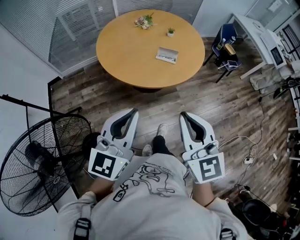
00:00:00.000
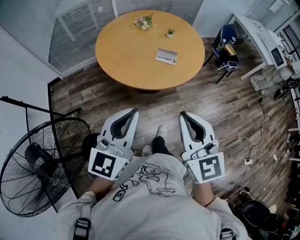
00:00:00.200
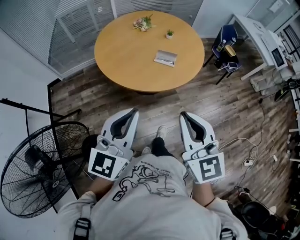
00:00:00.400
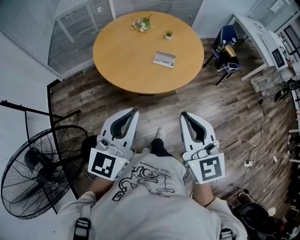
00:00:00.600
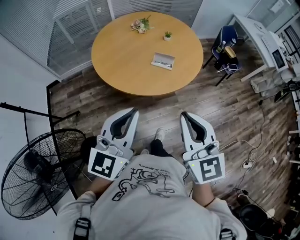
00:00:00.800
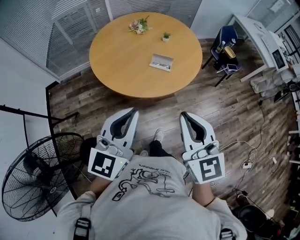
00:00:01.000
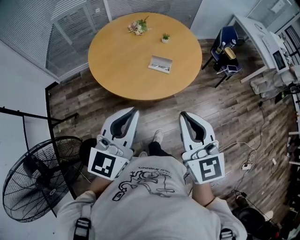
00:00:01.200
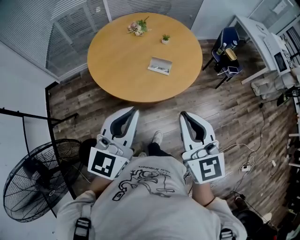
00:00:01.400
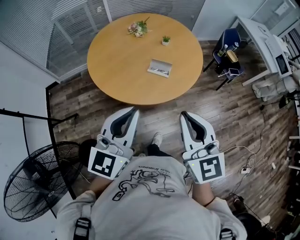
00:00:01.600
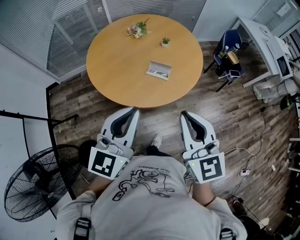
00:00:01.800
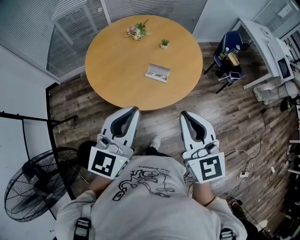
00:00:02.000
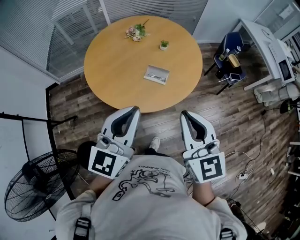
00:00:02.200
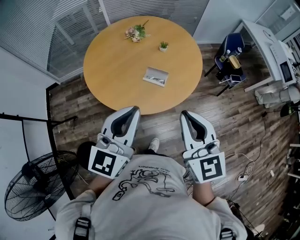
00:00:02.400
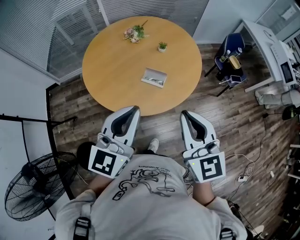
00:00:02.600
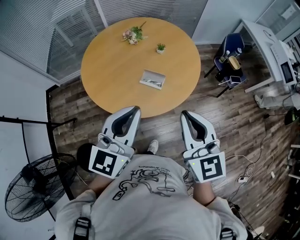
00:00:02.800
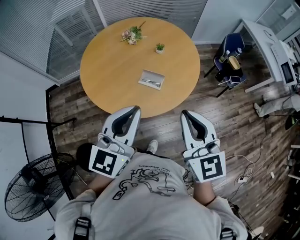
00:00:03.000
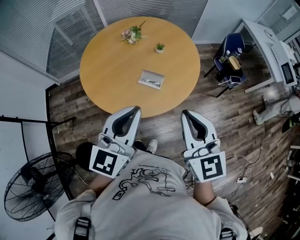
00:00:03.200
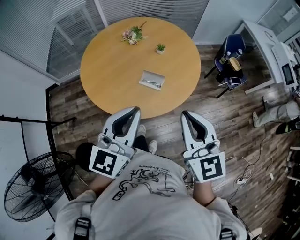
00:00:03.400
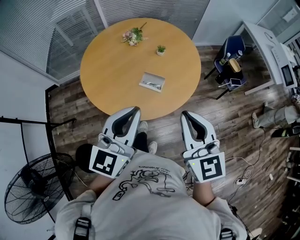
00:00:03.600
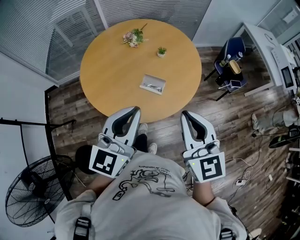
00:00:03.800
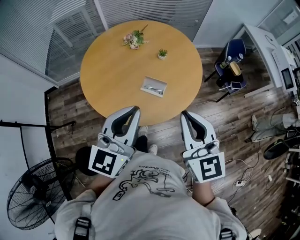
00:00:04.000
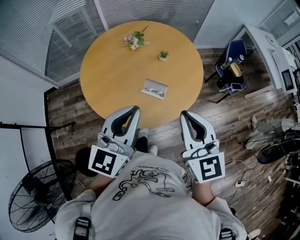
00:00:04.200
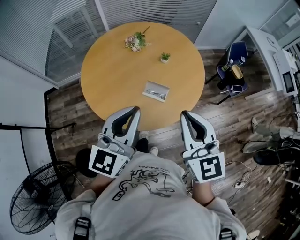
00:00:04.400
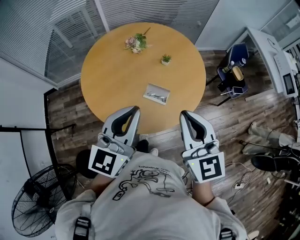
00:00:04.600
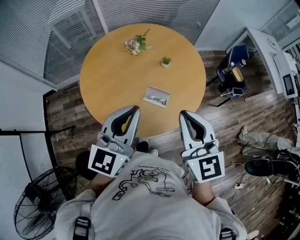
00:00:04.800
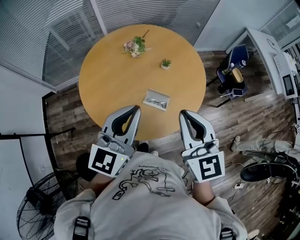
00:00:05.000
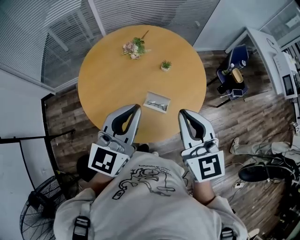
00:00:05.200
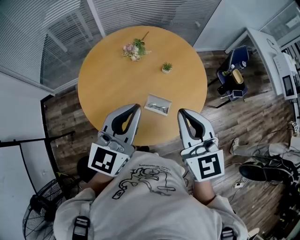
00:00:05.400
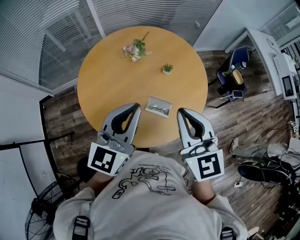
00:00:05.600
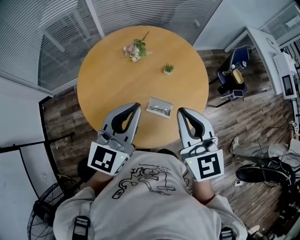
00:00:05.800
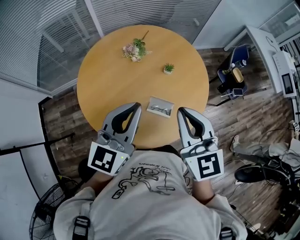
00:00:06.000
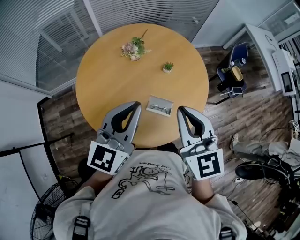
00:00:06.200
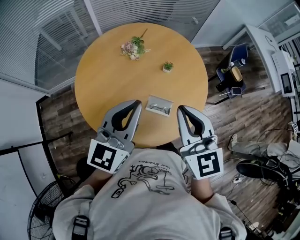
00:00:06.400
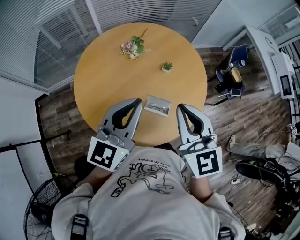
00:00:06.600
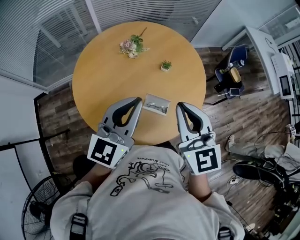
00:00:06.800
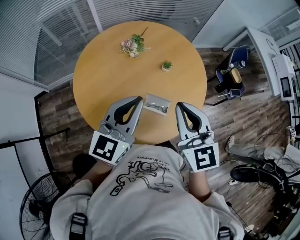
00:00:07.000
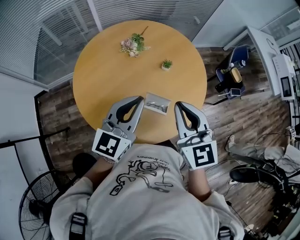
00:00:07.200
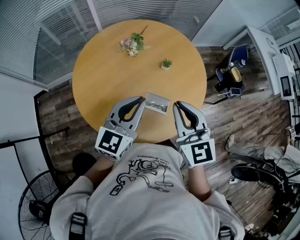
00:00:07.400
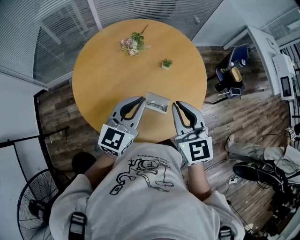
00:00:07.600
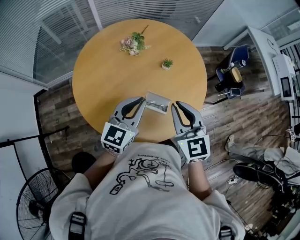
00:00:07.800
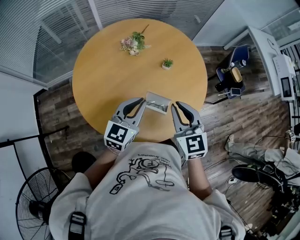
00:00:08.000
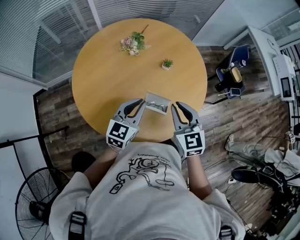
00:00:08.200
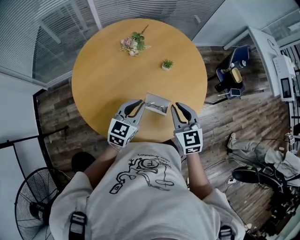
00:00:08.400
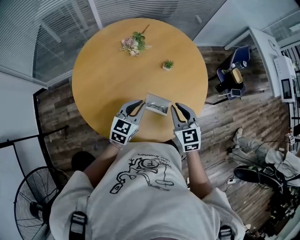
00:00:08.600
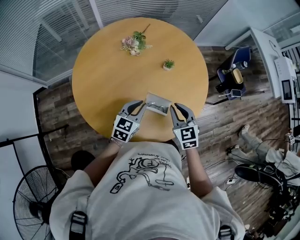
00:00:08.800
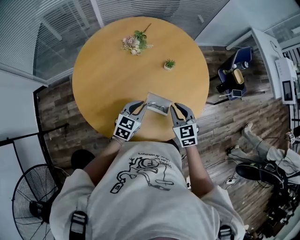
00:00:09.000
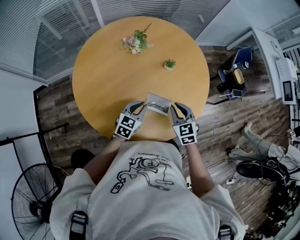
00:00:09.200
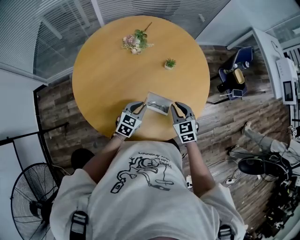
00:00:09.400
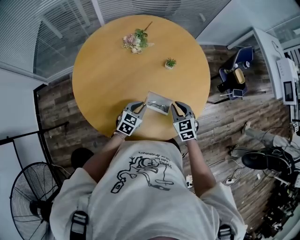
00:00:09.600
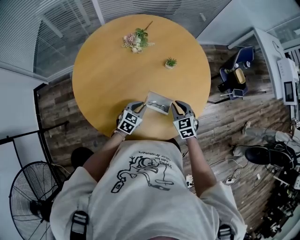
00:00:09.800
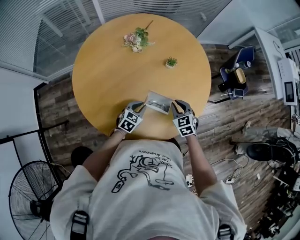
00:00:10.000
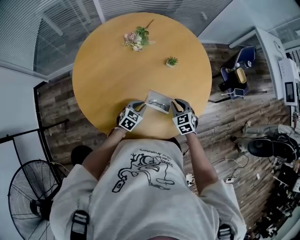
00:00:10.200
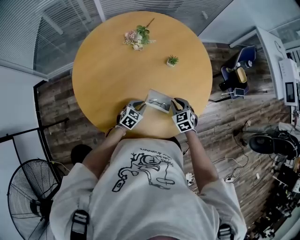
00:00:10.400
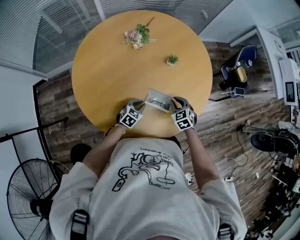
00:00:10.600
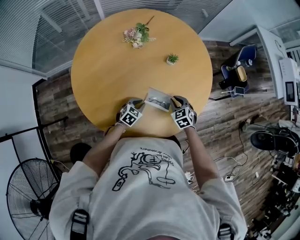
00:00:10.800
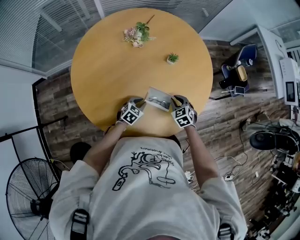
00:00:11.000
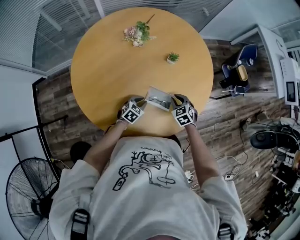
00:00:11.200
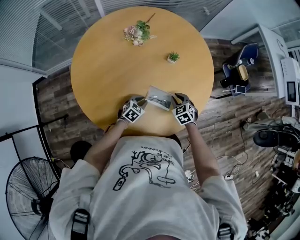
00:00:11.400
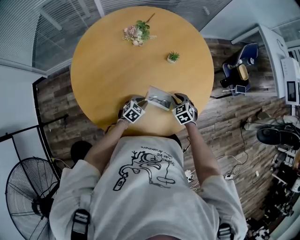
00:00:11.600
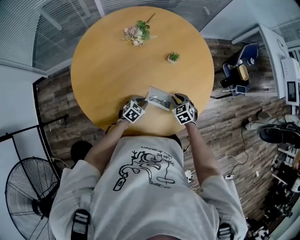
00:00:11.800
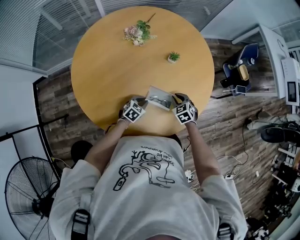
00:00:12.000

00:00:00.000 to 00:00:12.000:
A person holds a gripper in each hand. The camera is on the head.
00:00:00.000 to 00:00:01.600: Both grippers travel together forward and to the right, about 20 cm.
00:00:01.600 to 00:00:03.000: Both grippers move forward and to the right, some 15 cm.
00:00:03.000 to 00:00:04.400: The grippers both shift forward by roughly 10 cm.
00:00:04.400 to 00:00:06.000: The right gripper goes about 15 cm forward and to the left; the left gripper goes roughly 15 cm forward.
00:00:06.000 to 00:00:07.600: Both grippers travel together downward, roughly 10 cm.
00:00:07.600 to 00:00:09.000: The two grippers go roughly 20 cm downward. The left gripper rotates approximately 20 degrees; the right gripper turns by approximately 20 degrees.
00:00:09.000 to 00:00:10.400: Both grippers travel together downward, some 15 cm.
00:00:10.400 to 00:00:12.000: The left gripper moves roughly 5 cm; the right gripper travels downward by some 5 cm.

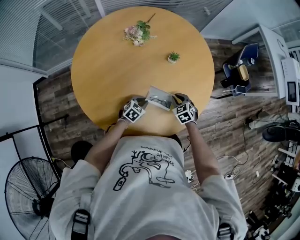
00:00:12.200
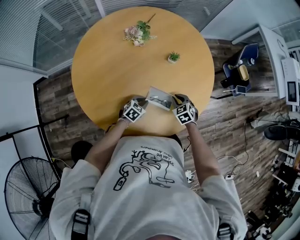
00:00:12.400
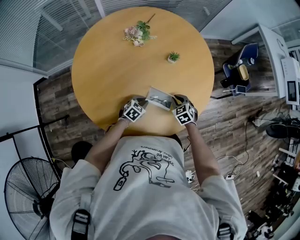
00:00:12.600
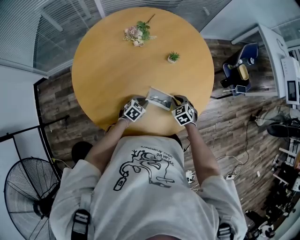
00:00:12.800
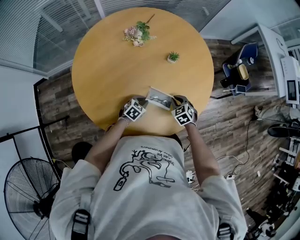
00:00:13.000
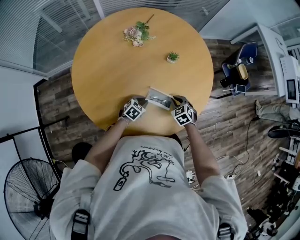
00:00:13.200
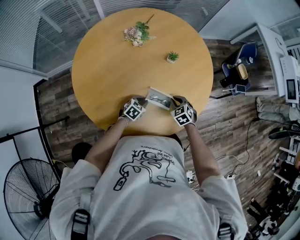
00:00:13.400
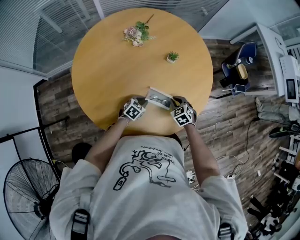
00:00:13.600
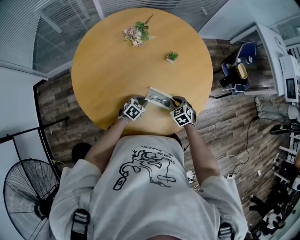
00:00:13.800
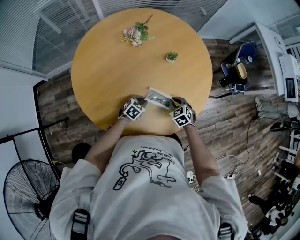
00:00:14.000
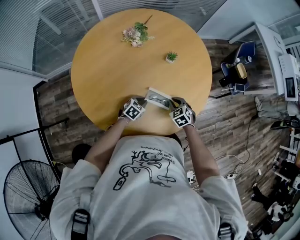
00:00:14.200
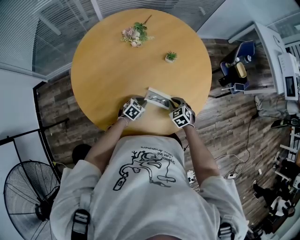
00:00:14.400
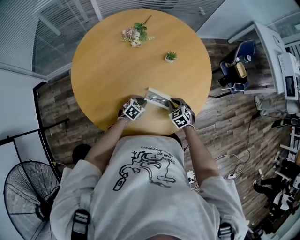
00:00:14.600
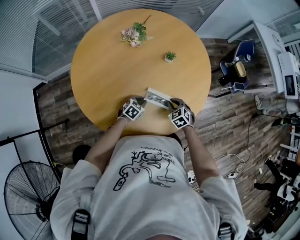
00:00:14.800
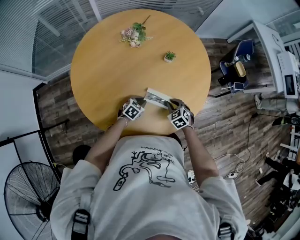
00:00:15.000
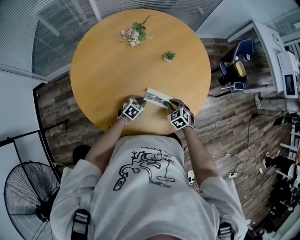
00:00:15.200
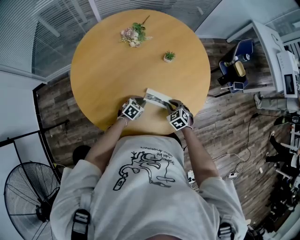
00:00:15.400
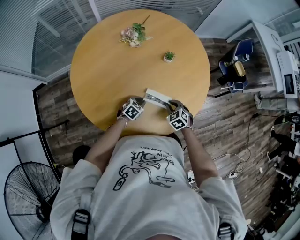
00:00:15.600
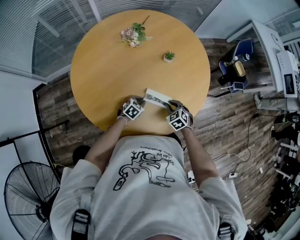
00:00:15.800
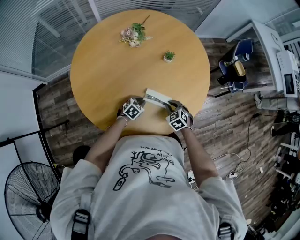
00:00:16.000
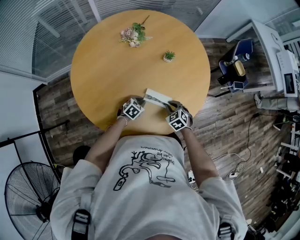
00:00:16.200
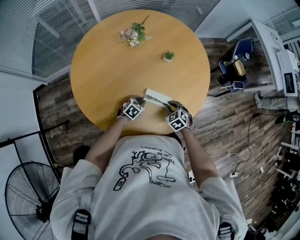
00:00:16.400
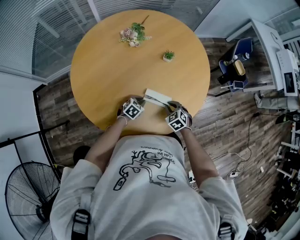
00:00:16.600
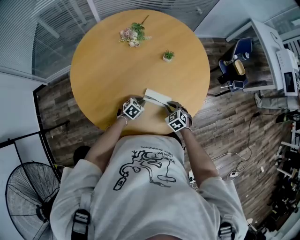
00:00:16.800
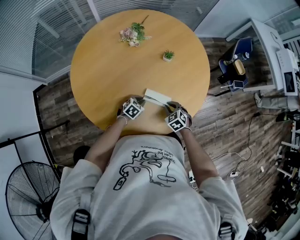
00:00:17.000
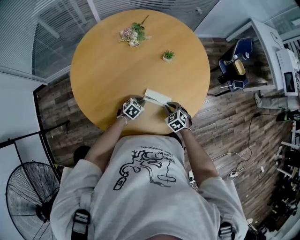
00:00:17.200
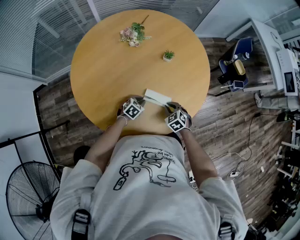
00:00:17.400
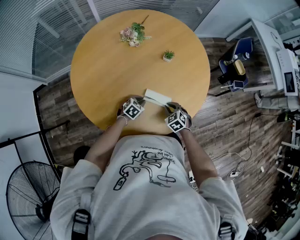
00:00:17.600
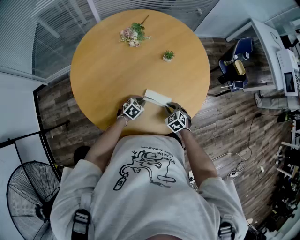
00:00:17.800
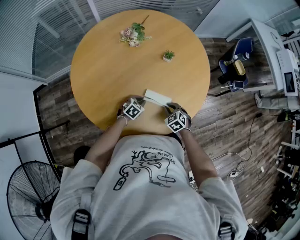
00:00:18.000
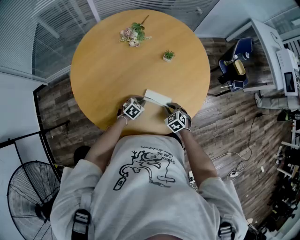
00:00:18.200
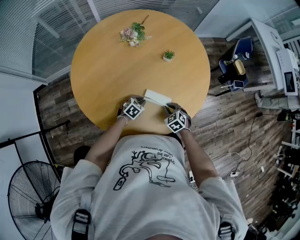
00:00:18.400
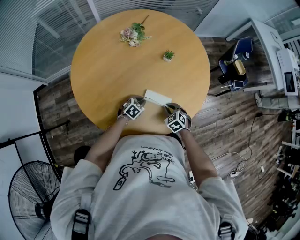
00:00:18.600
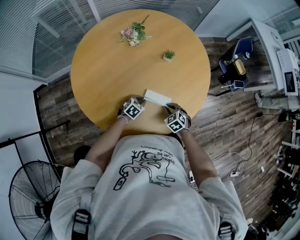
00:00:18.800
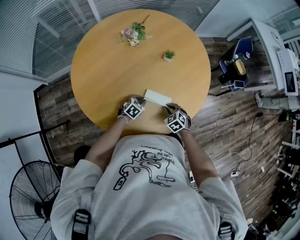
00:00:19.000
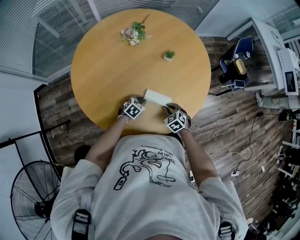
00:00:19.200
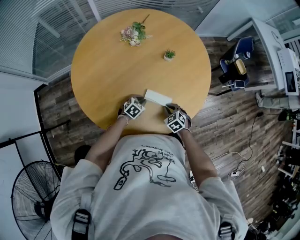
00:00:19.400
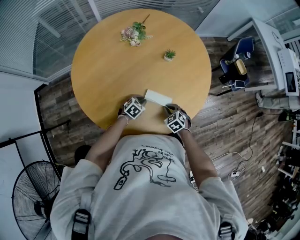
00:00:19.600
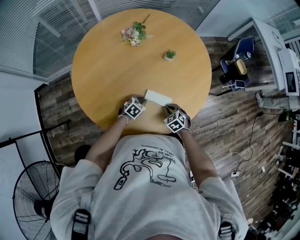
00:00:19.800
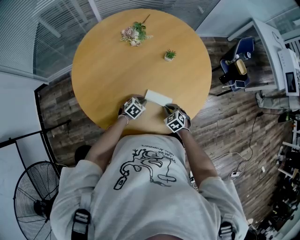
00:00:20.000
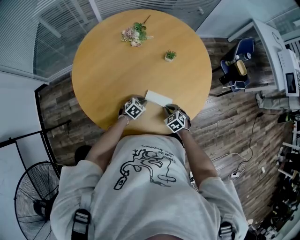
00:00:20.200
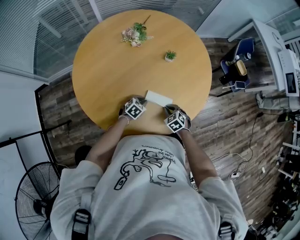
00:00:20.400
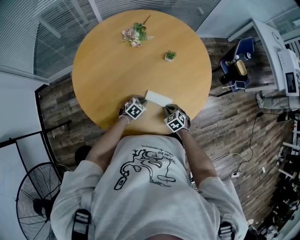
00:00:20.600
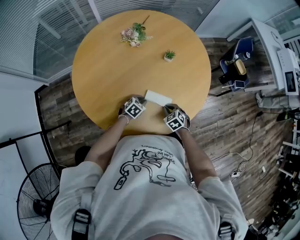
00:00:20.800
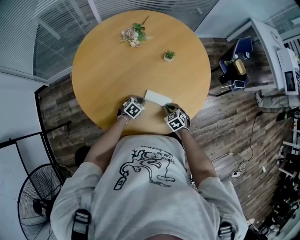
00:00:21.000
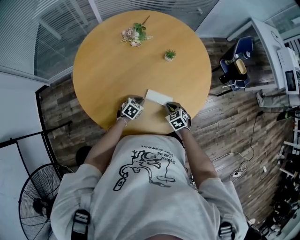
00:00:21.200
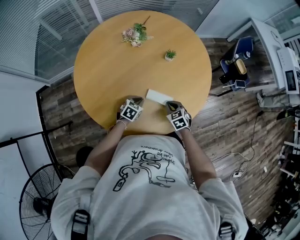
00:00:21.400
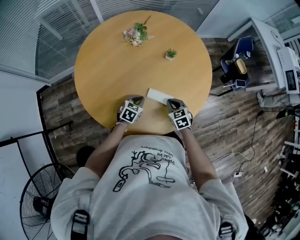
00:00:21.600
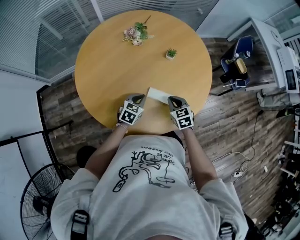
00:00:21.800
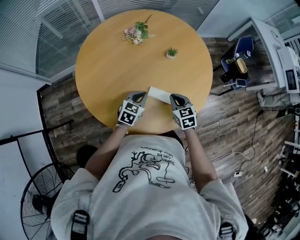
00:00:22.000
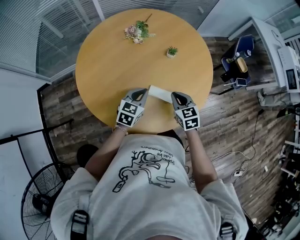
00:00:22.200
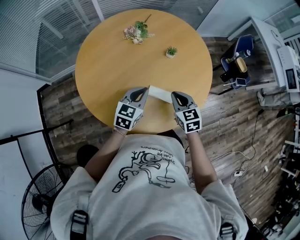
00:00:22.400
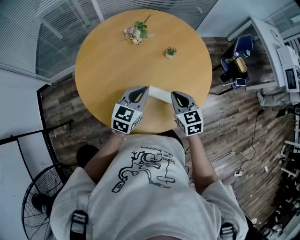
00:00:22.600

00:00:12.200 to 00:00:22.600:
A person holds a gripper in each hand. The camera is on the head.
00:00:12.200 to 00:00:15.200: The grippers stay close to where they were, moving slightly.
00:00:15.200 to 00:00:18.200: There are only small adjustments of the grippers.
00:00:18.200 to 00:00:19.600: Neither gripper changes place.
00:00:19.600 to 00:00:21.200: The grippers move only a little.
00:00:21.200 to 00:00:22.600: The grippers both shift upward by approximately 25 cm. The left gripper tilts its fingers some 30 degrees upward, while the right gripper swivels some 20 degrees.

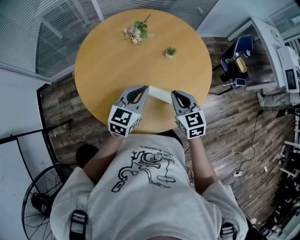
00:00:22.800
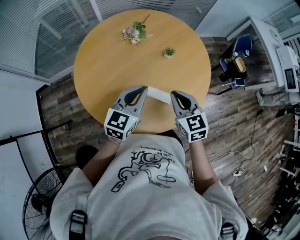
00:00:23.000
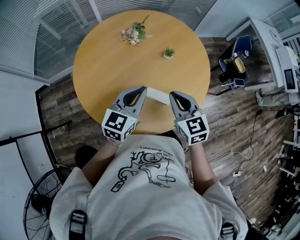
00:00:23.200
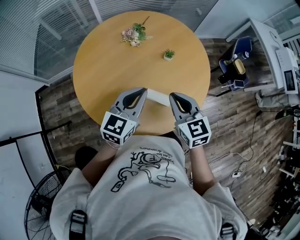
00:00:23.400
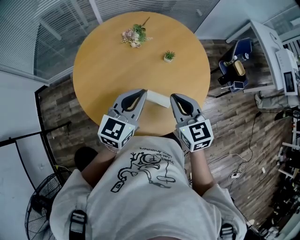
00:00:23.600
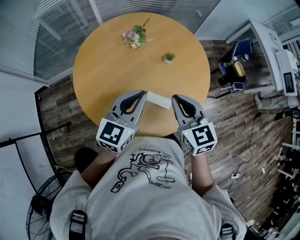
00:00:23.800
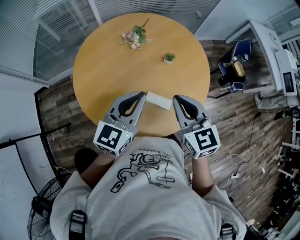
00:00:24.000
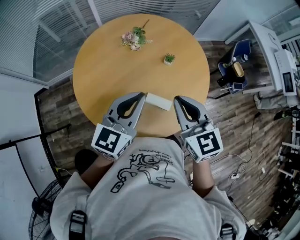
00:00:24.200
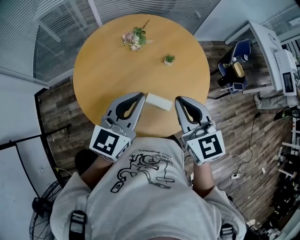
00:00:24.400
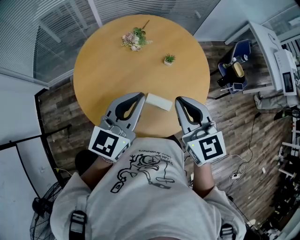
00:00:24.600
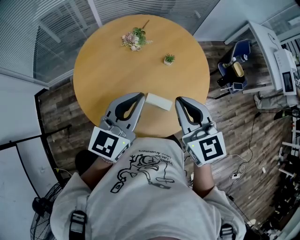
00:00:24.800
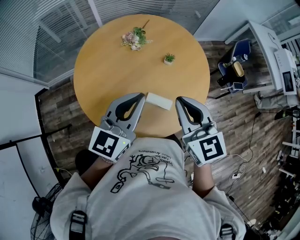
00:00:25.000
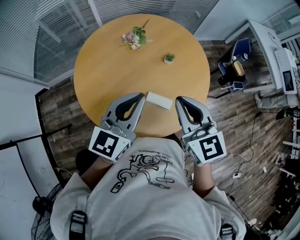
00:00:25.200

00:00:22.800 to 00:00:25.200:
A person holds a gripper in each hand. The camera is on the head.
00:00:22.800 to 00:00:24.000: Both grippers travel together upward, roughly 10 cm.
00:00:24.000 to 00:00:25.200: The grippers move only a little.
